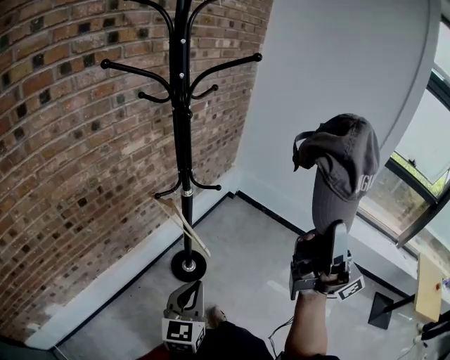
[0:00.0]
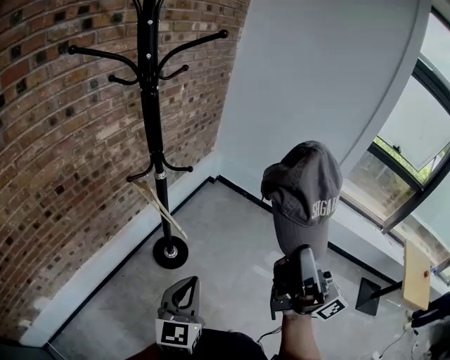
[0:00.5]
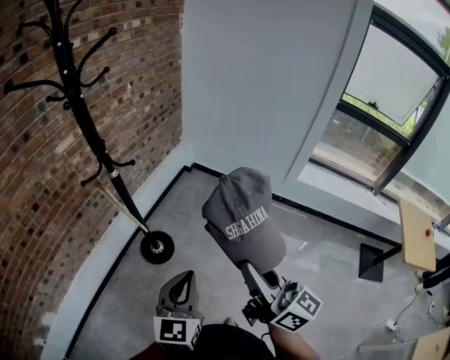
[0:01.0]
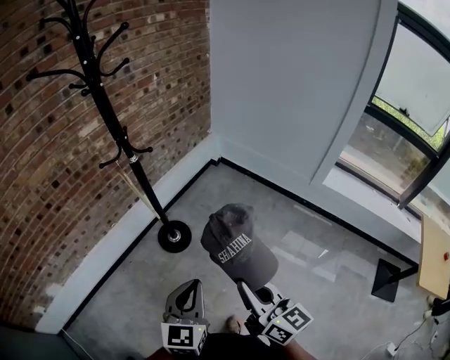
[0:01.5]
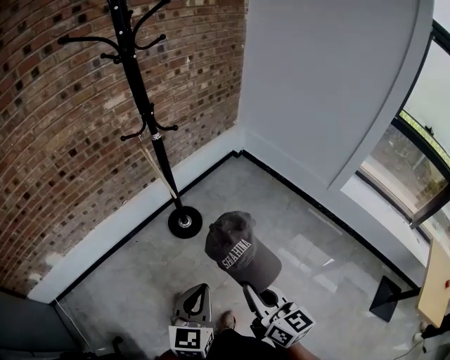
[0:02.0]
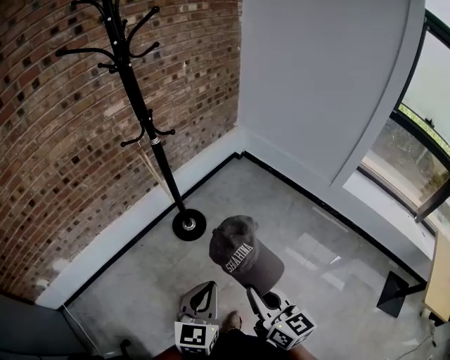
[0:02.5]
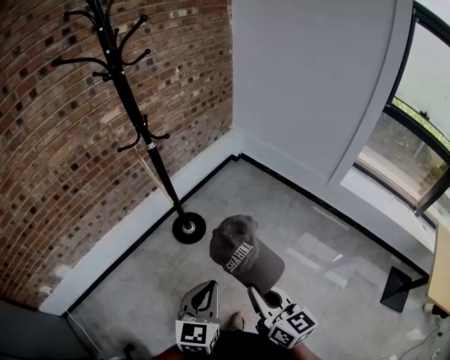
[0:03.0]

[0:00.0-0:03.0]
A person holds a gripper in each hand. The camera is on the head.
0:00.0 to 0:01.5: The right gripper heads downward and backward, covering roughly 35 cm, and points its fingers roughly 60 degrees further downward, while the left gripper moves to the right and backward, some 30 cm.
0:01.5 to 0:03.0: The left gripper shifts about 5 cm backward. Meanwhile the right gripper moves downward, approximately 5 cm.

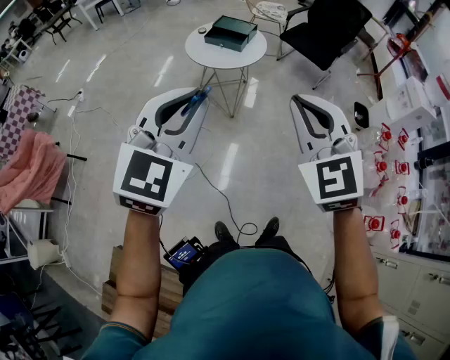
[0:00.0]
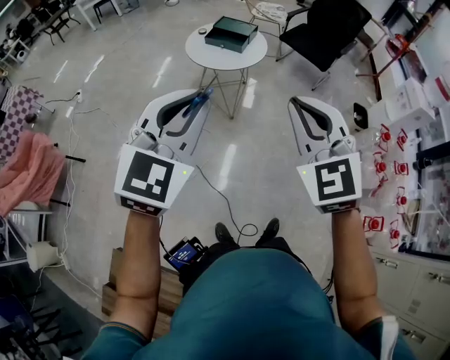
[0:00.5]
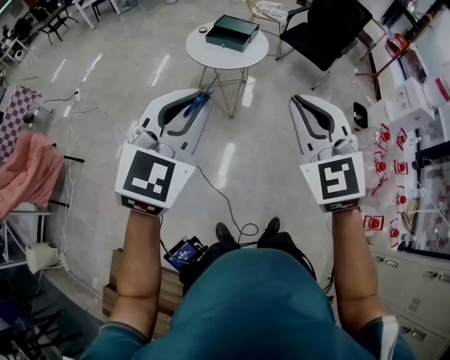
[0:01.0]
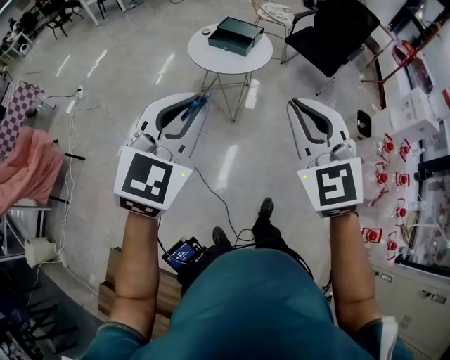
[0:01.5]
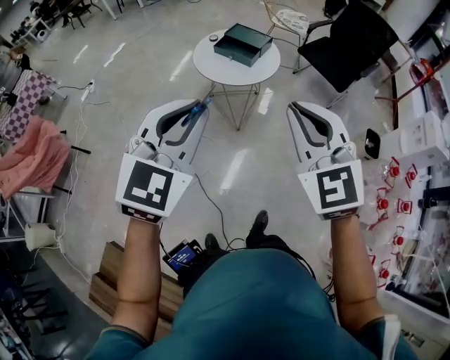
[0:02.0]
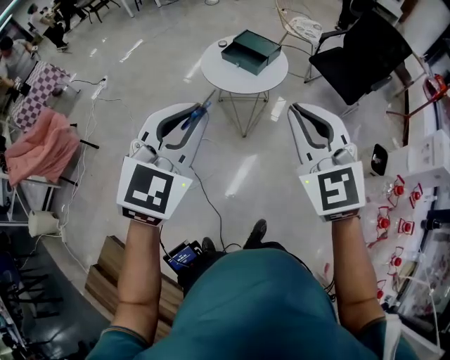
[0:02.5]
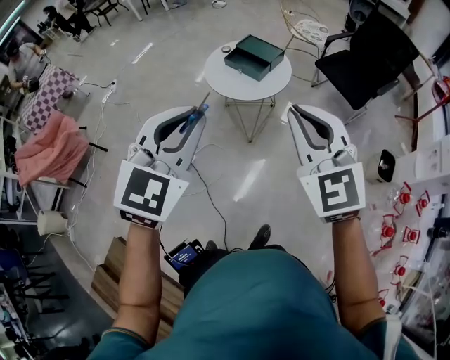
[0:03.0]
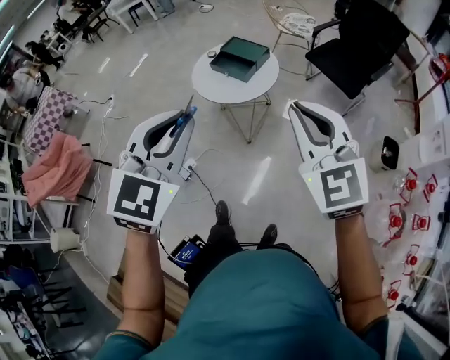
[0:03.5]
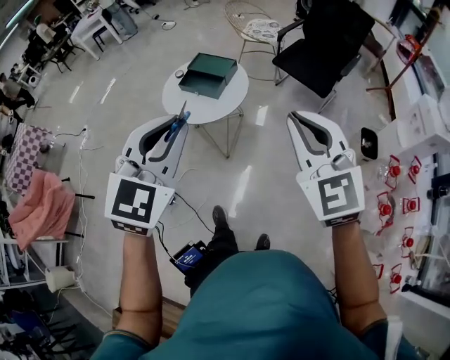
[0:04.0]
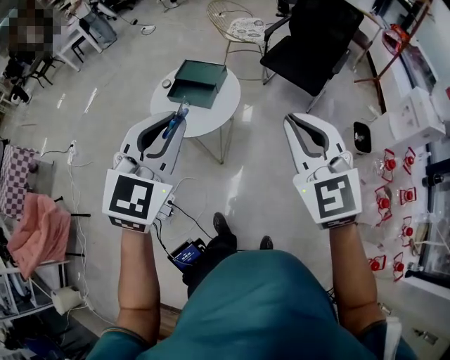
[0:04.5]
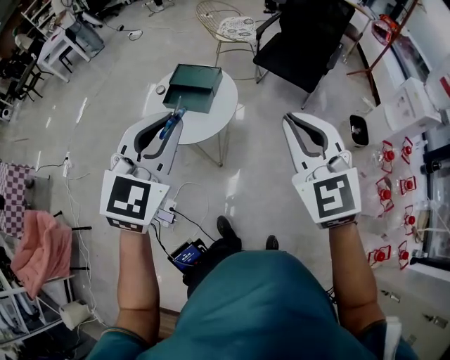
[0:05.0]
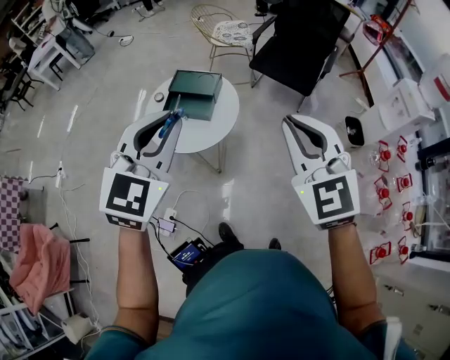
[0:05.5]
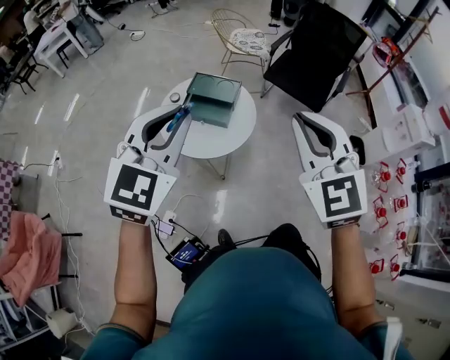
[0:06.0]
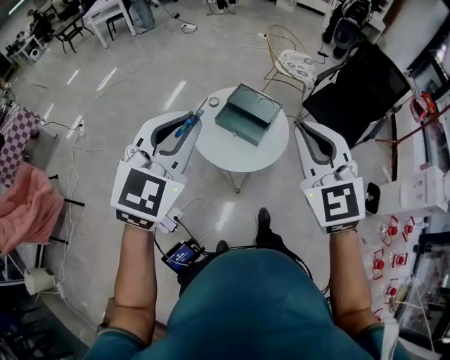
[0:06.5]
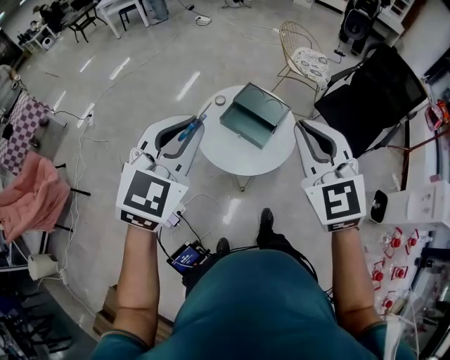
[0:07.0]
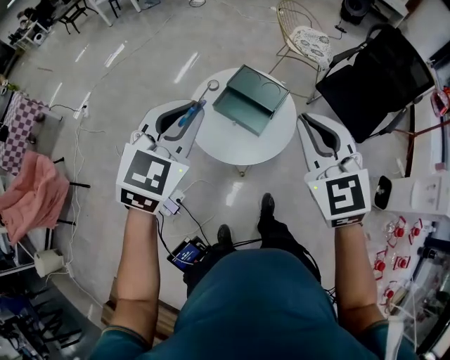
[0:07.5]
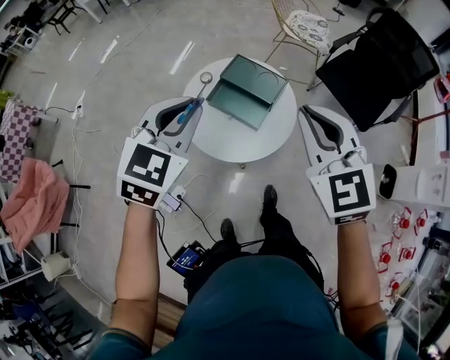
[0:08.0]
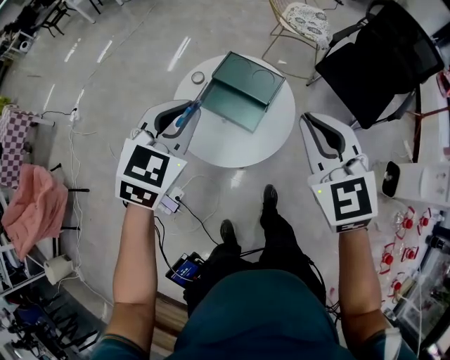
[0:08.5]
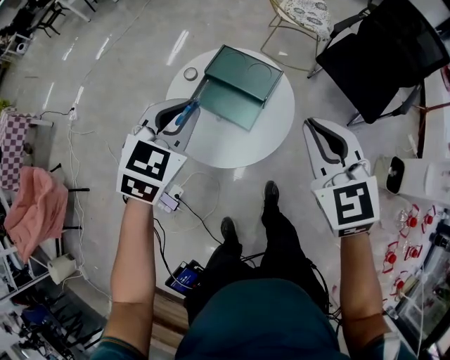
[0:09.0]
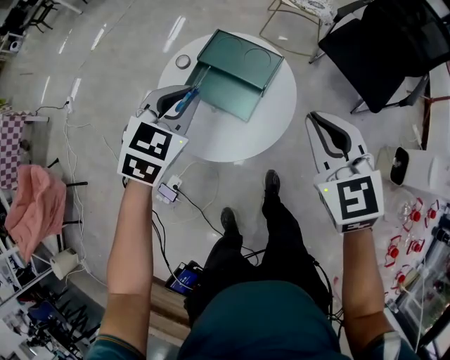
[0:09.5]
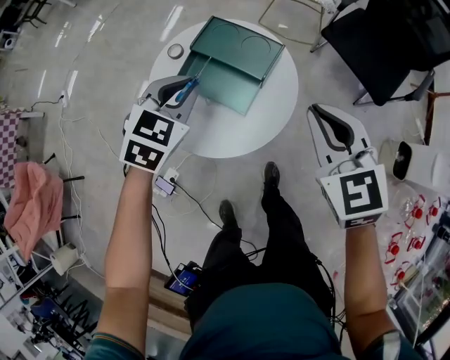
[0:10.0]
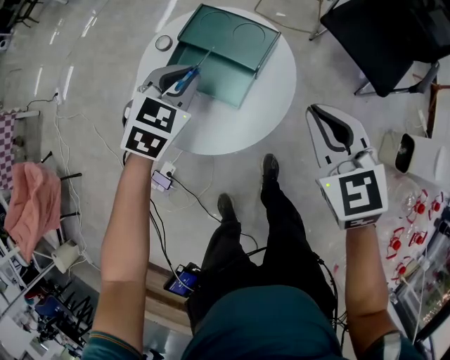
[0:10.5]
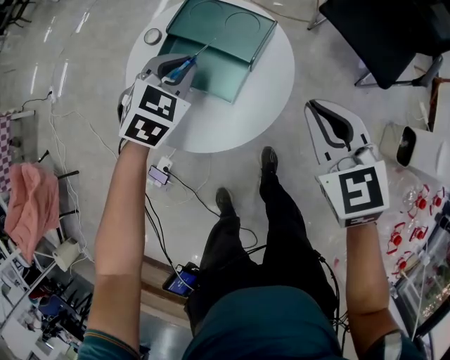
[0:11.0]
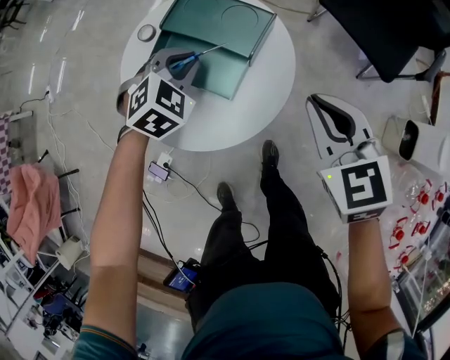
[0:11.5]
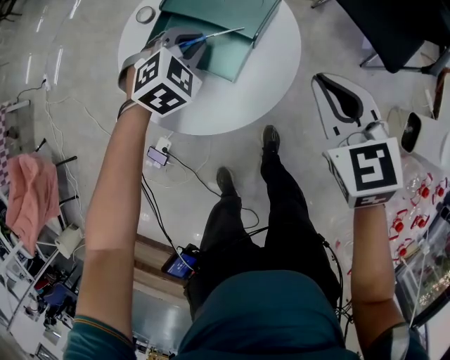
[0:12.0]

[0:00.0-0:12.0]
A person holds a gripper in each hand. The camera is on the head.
0:00.0 to 0:02.0: The two grippers go about 15 cm forward.
0:02.0 to 0:04.0: Both grippers move to the right and forward, roughly 25 cm.
0:04.0 to 0:06.0: The two grippers go some 30 cm to the left and forward.
0:06.0 to 0:08.0: Both grippers travel together forward and downward, approximately 25 cm. The left gripper rotates approximately 20 degrees.
0:08.0 to 0:10.0: Both grippers travel together downward and forward, approximately 25 cm.
0:10.0 to 0:12.0: The two grippers go roughly 15 cm downward. The left gripper rotates roughly 30 degrees.

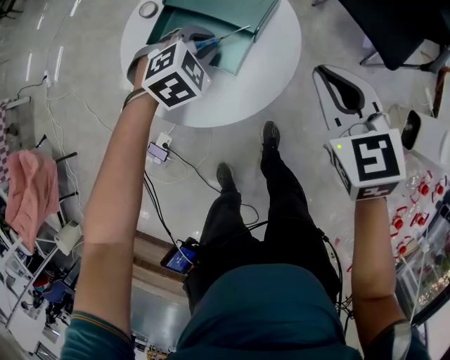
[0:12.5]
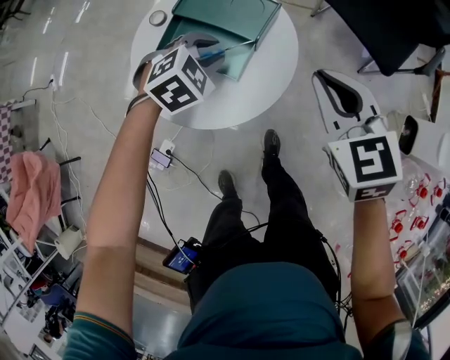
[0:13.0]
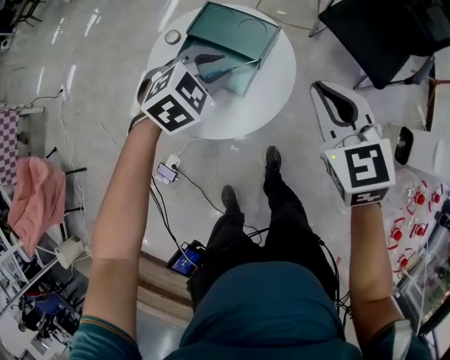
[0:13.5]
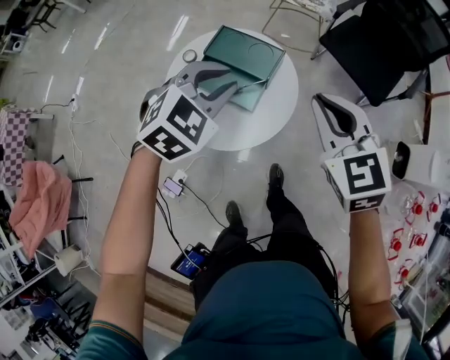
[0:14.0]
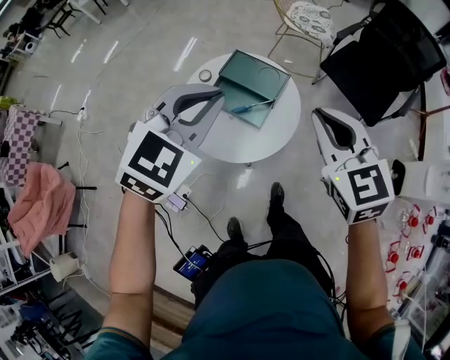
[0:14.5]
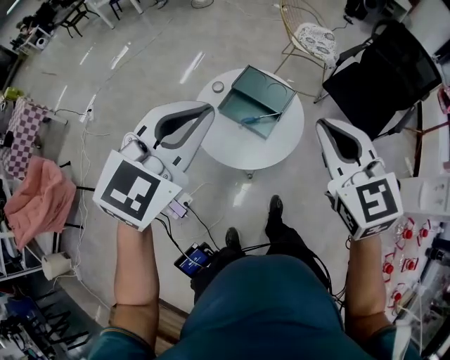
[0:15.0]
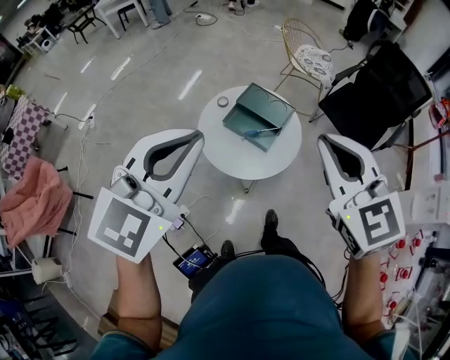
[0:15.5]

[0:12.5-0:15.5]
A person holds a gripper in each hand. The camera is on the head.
0:12.5 to 0:14.0: The grippers both shift upward by roughly 25 cm.
0:14.0 to 0:15.5: Both grippers travel together upward, backward and to the left, some 35 cm. The left gripper swivels about 30 degrees.

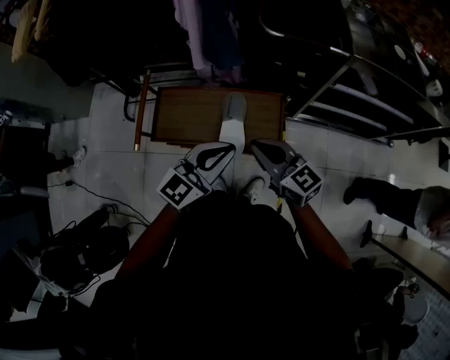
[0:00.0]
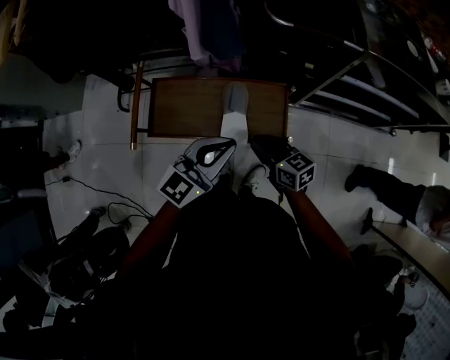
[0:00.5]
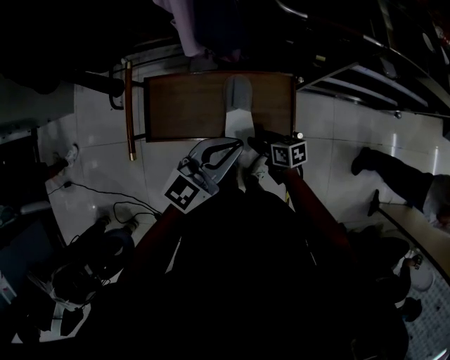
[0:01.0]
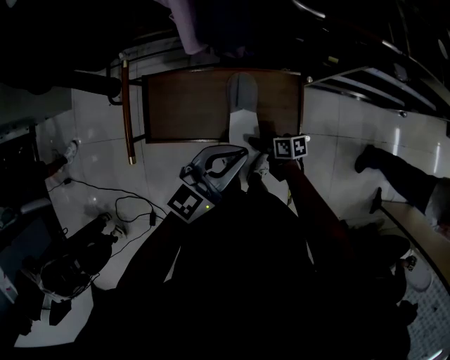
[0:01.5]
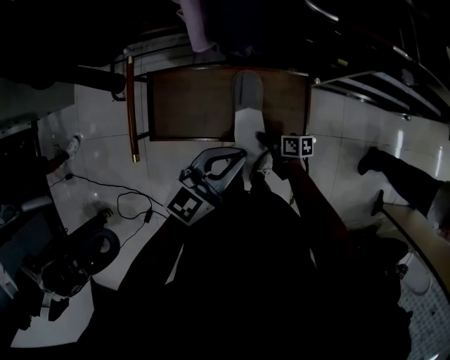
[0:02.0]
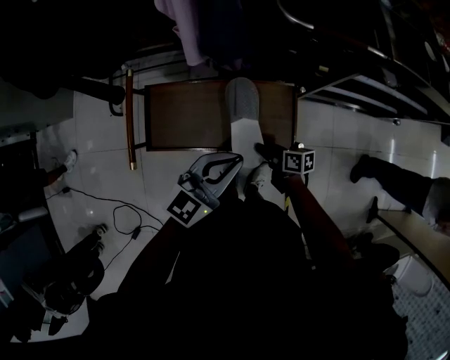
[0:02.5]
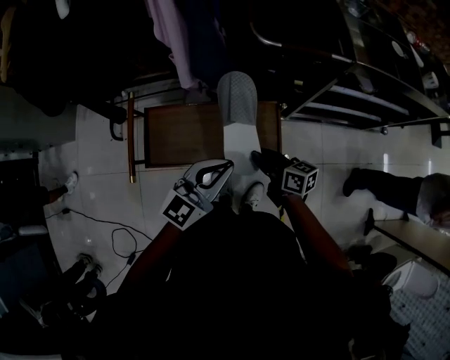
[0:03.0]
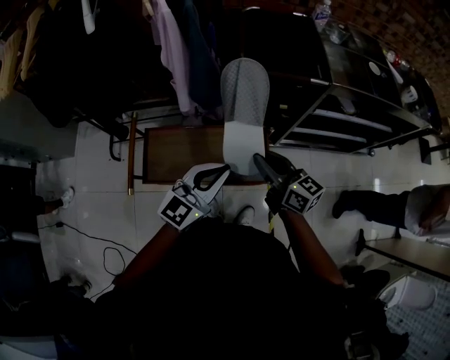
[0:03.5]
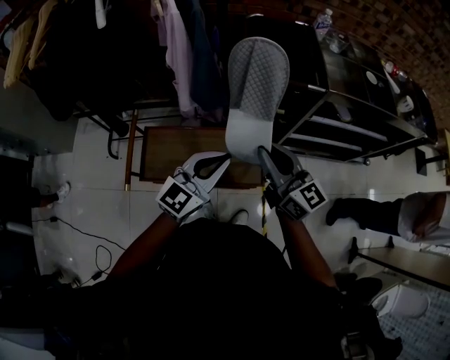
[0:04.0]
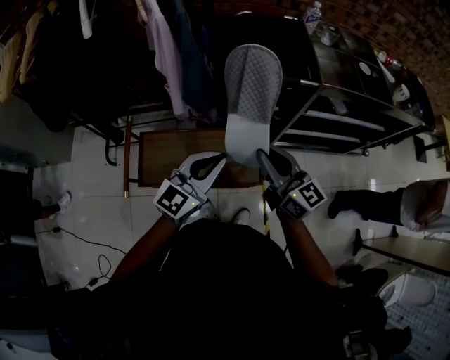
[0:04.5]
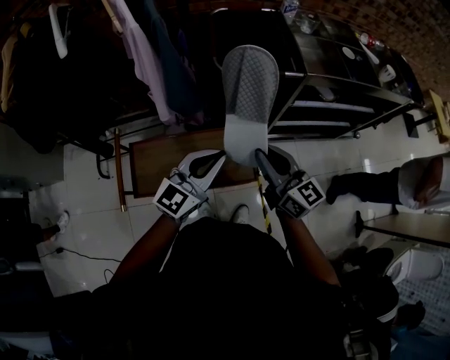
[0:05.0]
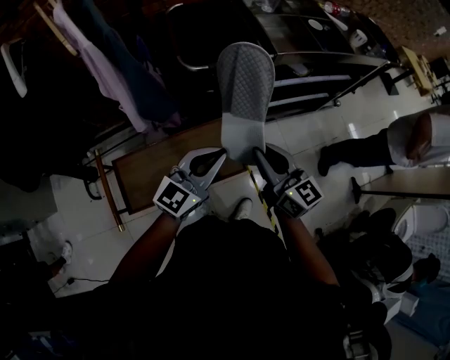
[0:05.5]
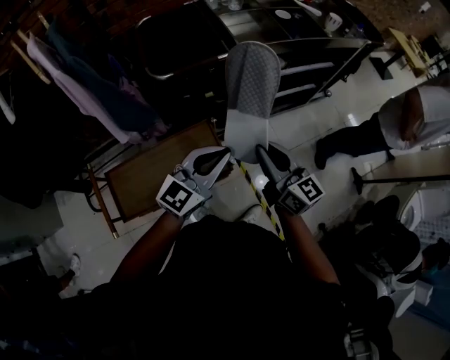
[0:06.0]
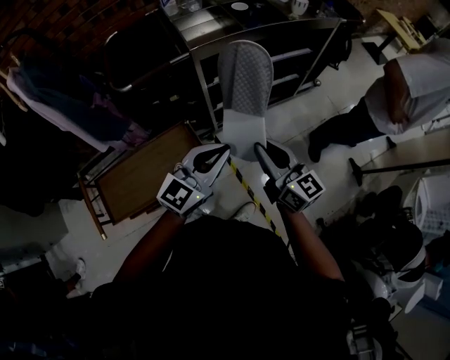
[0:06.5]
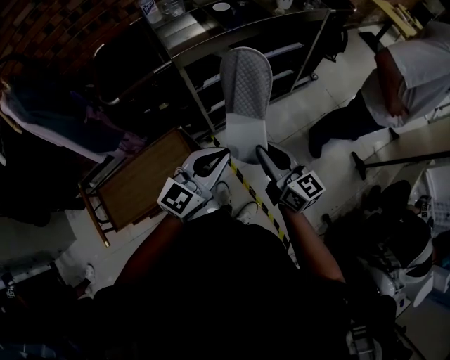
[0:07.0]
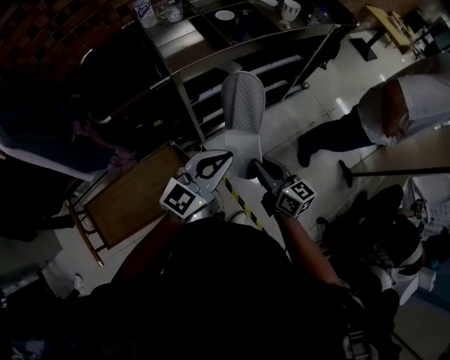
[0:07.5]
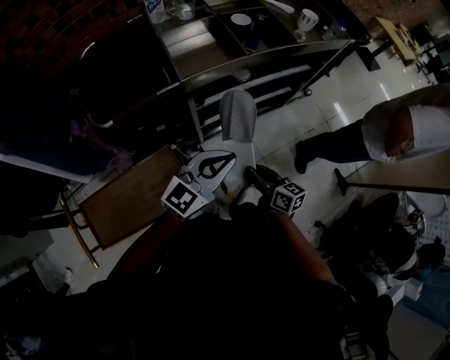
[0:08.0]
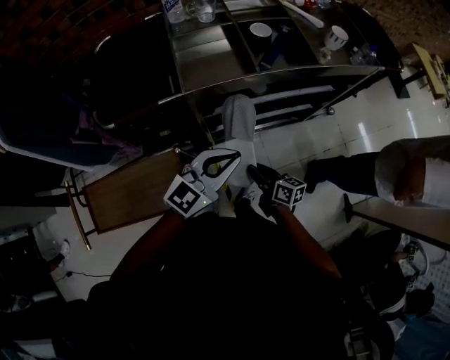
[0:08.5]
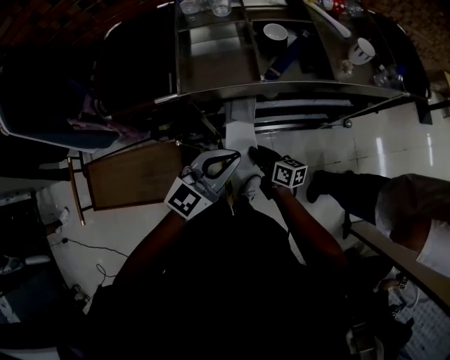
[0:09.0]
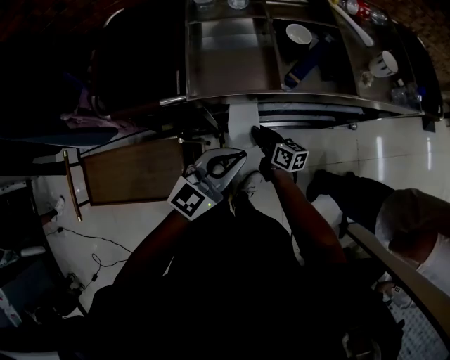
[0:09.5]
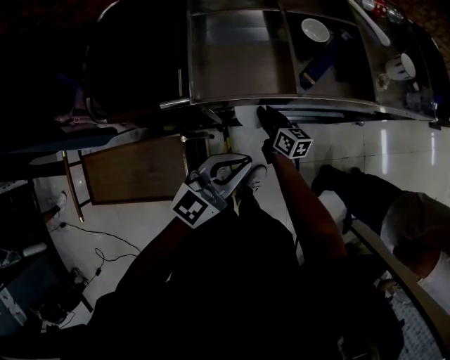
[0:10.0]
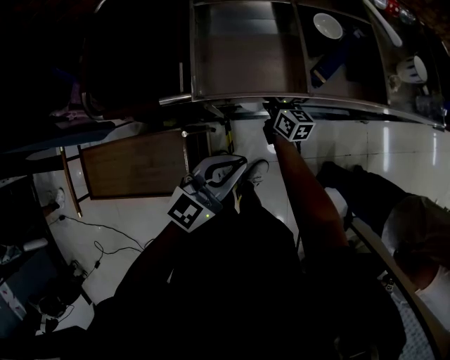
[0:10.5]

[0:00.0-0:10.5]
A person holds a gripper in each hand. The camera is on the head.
0:00.0 to 0:02.0: The right gripper travels downward by roughly 35 cm, rotates around the line of its fingers by about 60 degrees, clockwise from behind, and opens and closes again, while the left gripper goes roughly 15 cm downward and forward.
0:02.0 to 0:04.0: The right gripper goes roughly 50 cm upward, and points its fingers some 40 degrees further upward. The left gripper is displaced upward by about 15 cm.
0:04.0 to 0:06.5: The left gripper shifts by roughly 30 cm, and rotates approximately 30 degrees, while the right gripper ends up roughly 35 cm from where it was, and turns by roughly 30 degrees.
0:06.5 to 0:08.5: The left gripper is displaced forward by roughly 20 cm, while the right gripper moves downward and forward, roughly 30 cm, and turns by some 40 degrees.
0:08.5 to 0:10.5: The right gripper goes roughly 30 cm forward. The left gripper shifts some 10 cm downward and forward.
